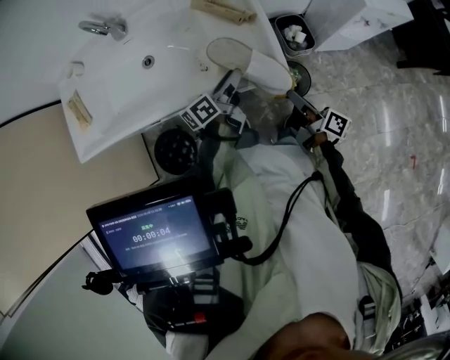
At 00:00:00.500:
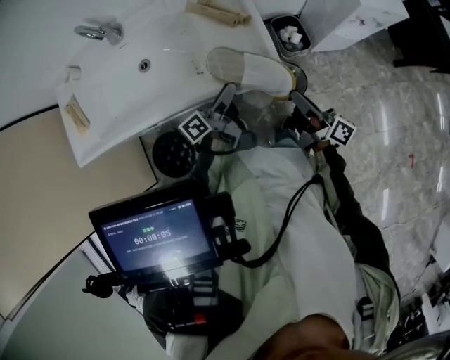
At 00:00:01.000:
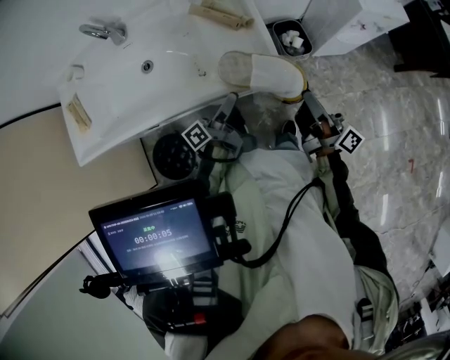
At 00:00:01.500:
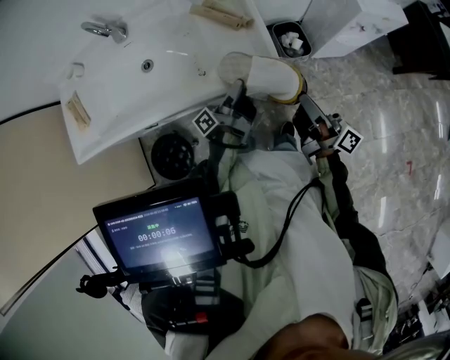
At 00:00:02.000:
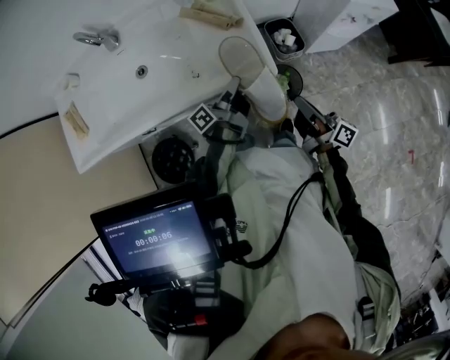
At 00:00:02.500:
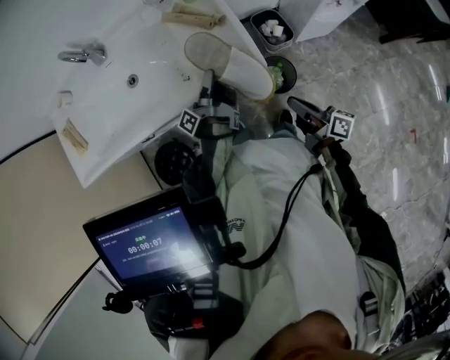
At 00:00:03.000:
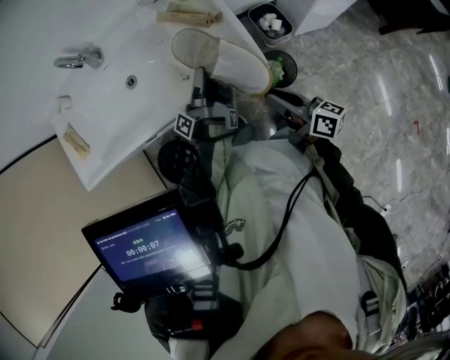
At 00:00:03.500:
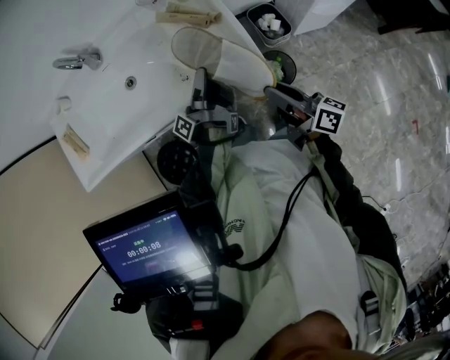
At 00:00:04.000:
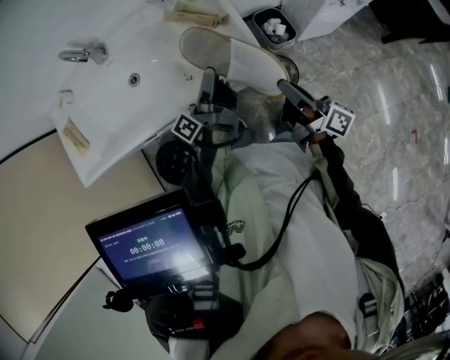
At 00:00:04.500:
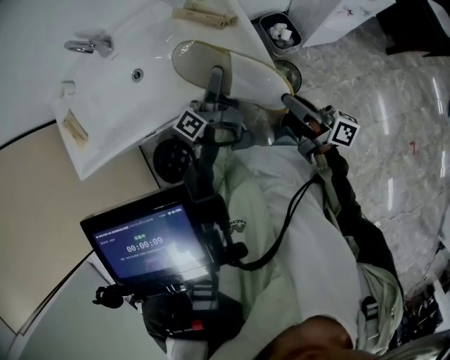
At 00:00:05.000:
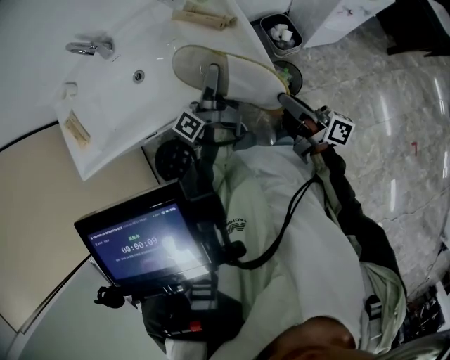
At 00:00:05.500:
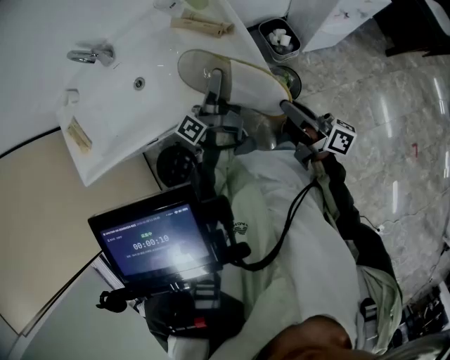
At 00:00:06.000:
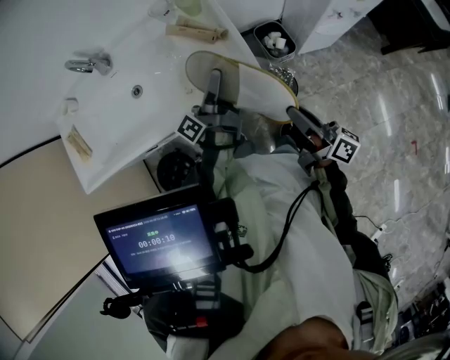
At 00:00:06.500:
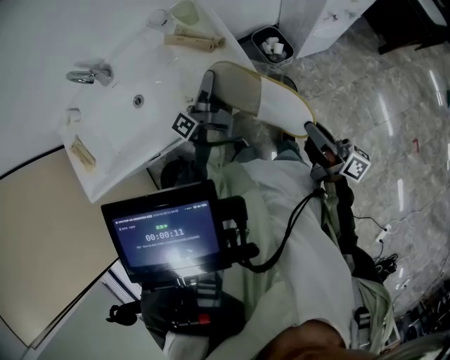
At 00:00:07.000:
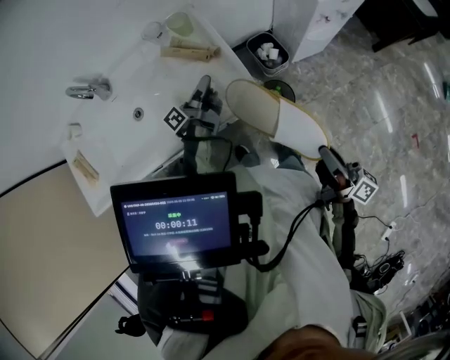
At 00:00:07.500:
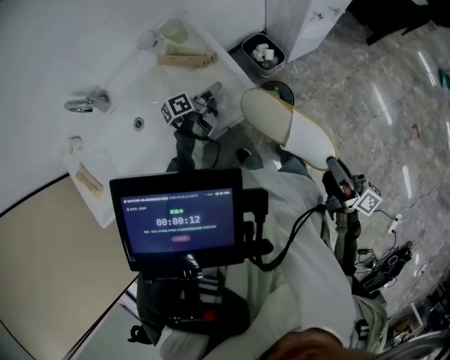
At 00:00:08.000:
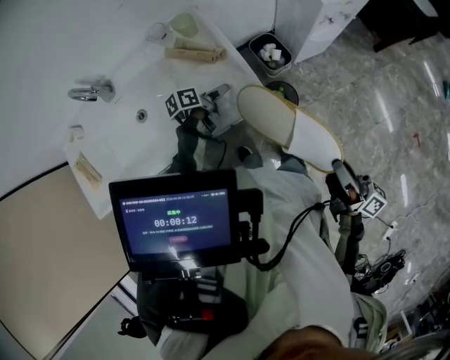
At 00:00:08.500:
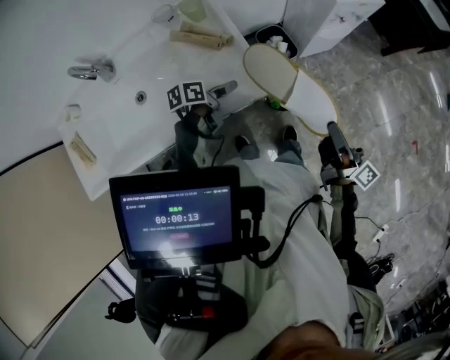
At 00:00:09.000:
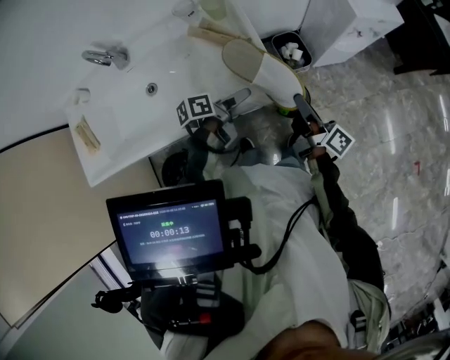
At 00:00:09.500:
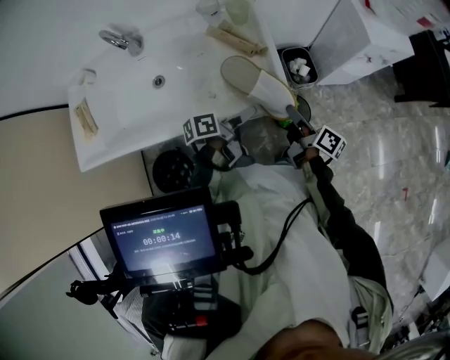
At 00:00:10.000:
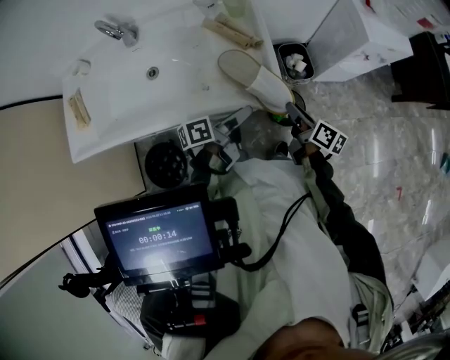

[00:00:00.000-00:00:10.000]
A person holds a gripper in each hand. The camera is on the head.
00:00:00.000 to 00:00:02.000: The right gripper goes about 5 cm upward.
00:00:02.000 to 00:00:04.000: The right gripper changes place by approximately 5 cm.
00:00:06.000 to 00:00:08.000: The right gripper changes place by about 15 cm.
00:00:08.000 to 00:00:10.000: The right gripper shifts by about 25 cm, and tips its fingers downward by approximately 30 degrees.

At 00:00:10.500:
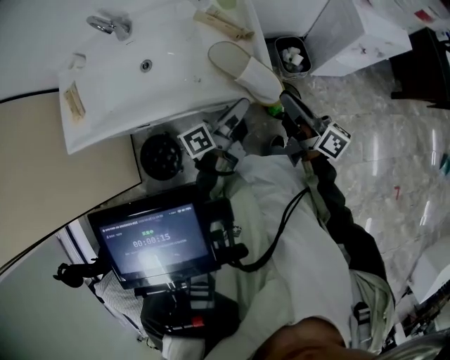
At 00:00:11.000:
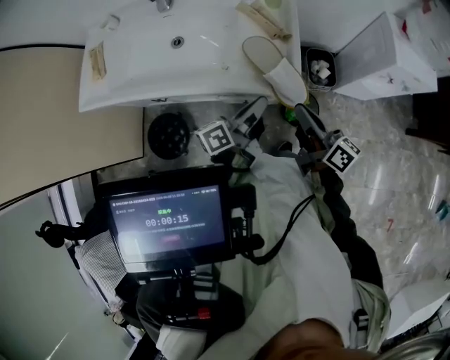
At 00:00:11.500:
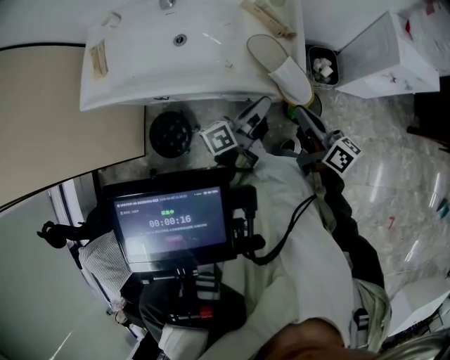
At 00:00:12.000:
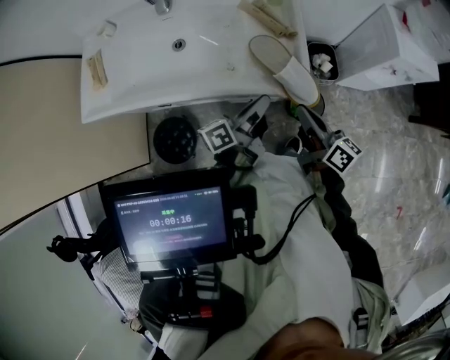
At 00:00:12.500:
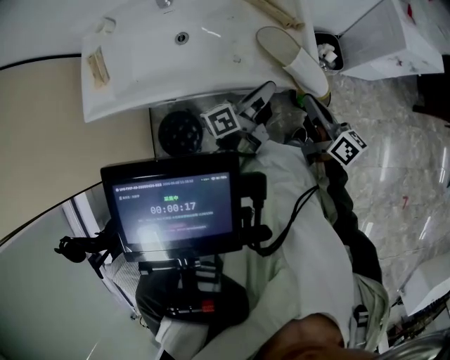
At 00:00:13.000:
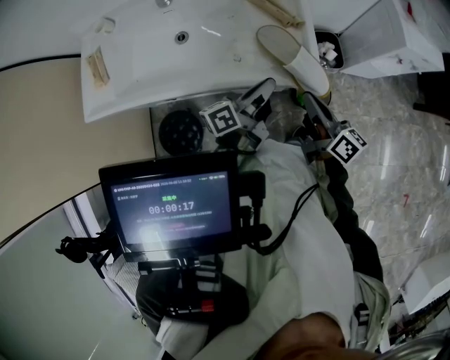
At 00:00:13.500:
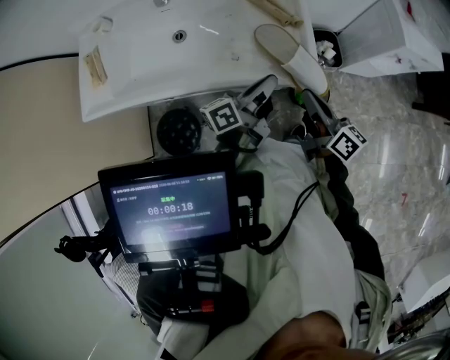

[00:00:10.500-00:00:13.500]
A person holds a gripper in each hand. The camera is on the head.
00:00:10.500 to 00:00:12.000: The right gripper ends up approximately 5 cm from where it was, and closes.

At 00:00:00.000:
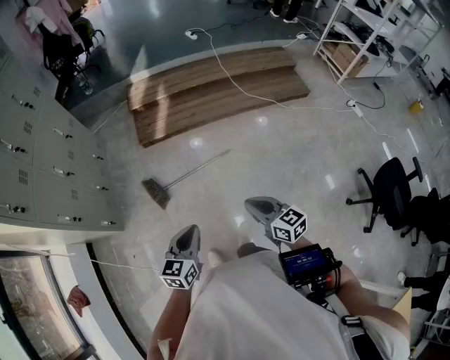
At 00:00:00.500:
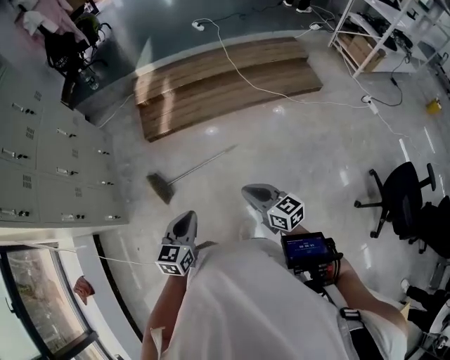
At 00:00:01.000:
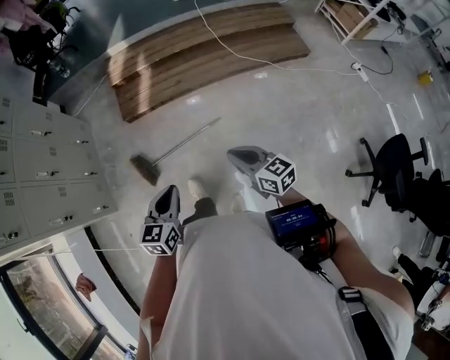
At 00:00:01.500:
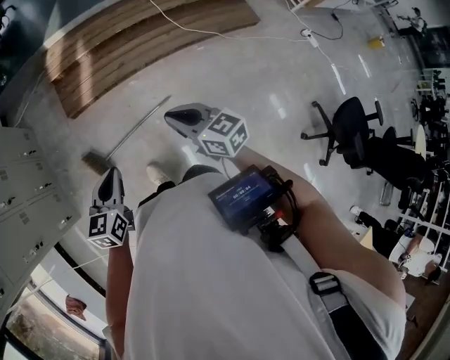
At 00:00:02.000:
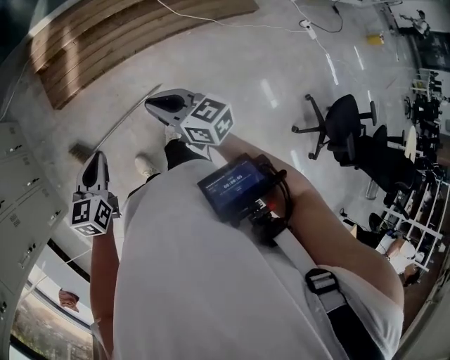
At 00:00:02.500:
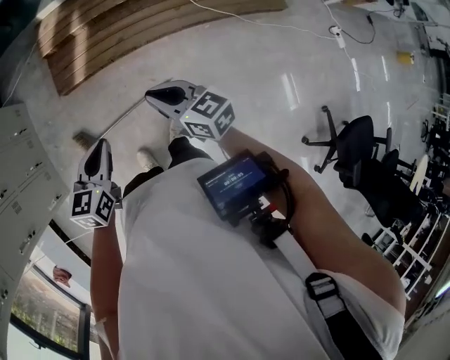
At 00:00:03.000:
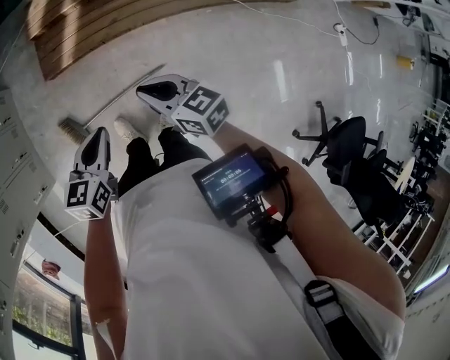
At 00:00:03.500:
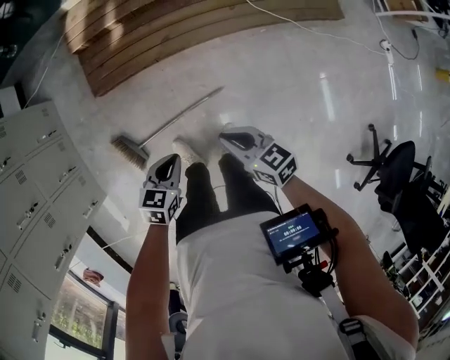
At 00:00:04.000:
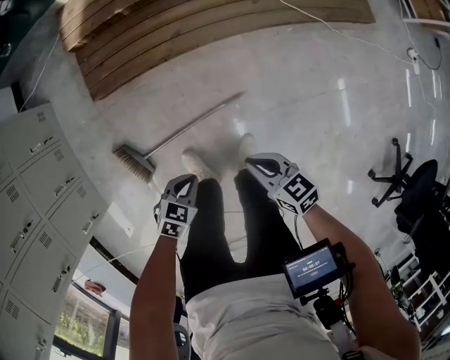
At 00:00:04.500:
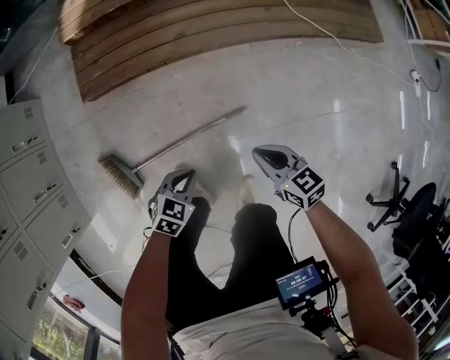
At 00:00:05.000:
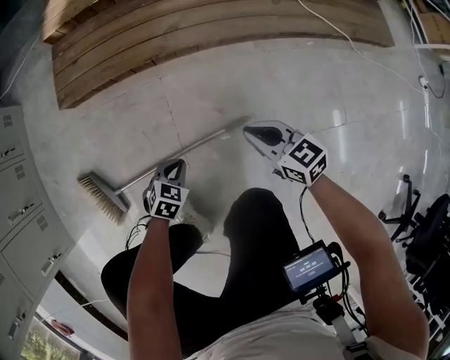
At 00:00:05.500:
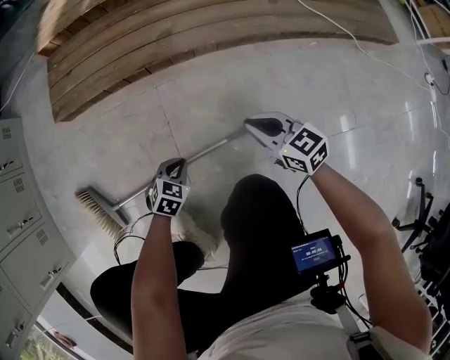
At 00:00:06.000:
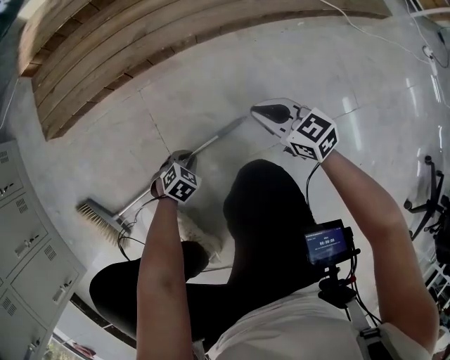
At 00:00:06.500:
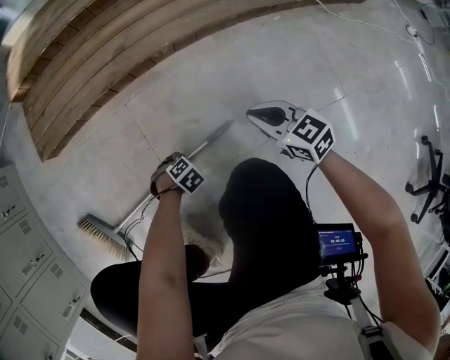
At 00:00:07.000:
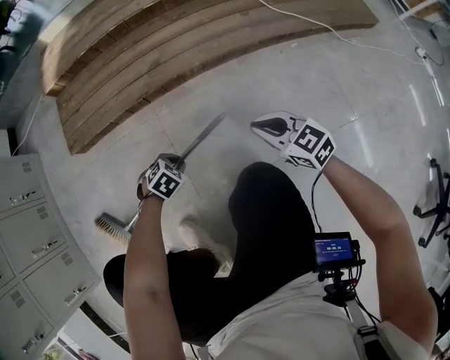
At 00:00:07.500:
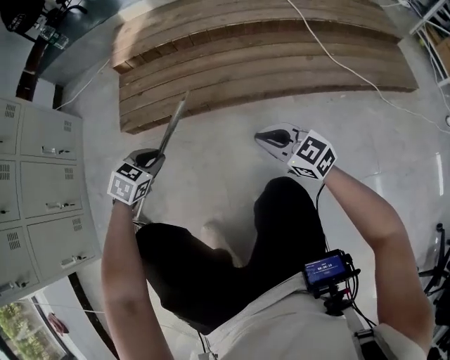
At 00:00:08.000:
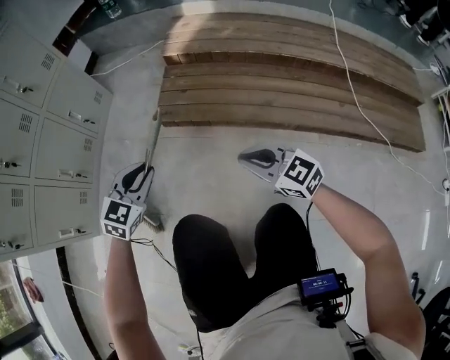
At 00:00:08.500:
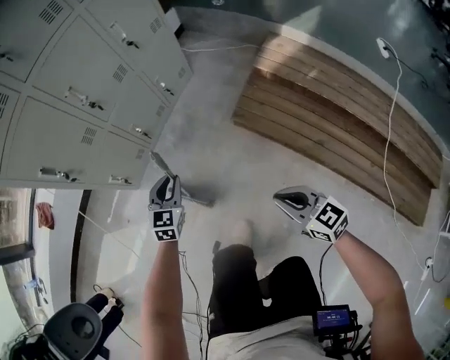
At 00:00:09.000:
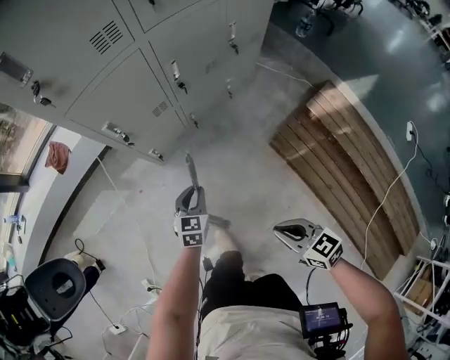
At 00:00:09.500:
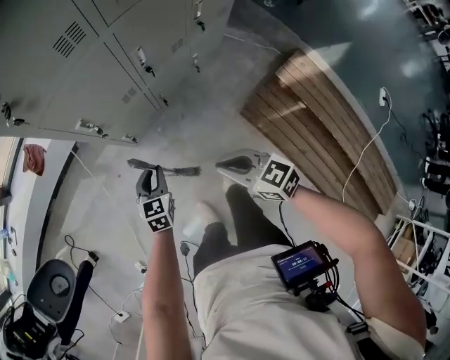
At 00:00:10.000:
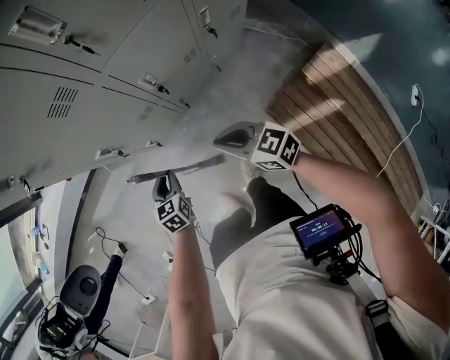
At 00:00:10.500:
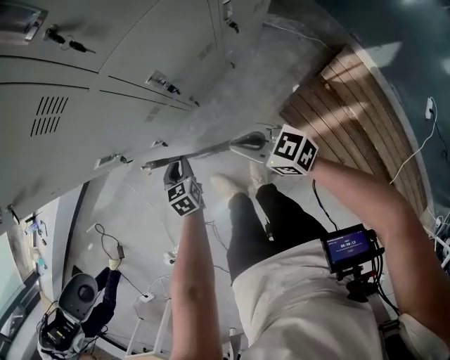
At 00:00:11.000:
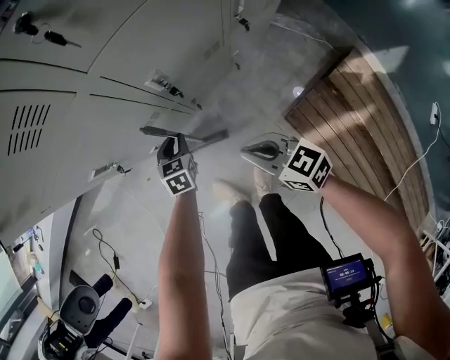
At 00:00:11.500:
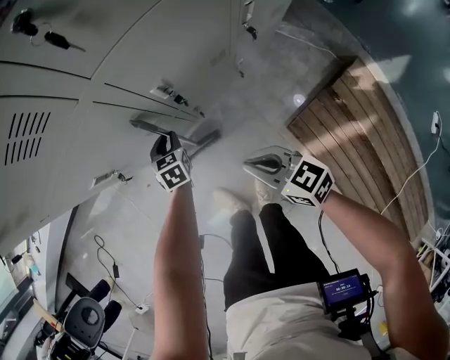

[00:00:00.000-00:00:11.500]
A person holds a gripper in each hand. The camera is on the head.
00:00:00.000 to 00:00:02.000: The grippers both shift forward by roughly 35 cm.
00:00:02.000 to 00:00:04.000: Both grippers travel together downward, roughly 35 cm. The right gripper turns by some 20 degrees. Meanwhile the left gripper swivels approximately 40 degrees.
00:00:04.000 to 00:00:06.000: The left gripper travels downward by some 50 cm, and swivels some 30 degrees. Meanwhile the right gripper is displaced downward and forward by some 35 cm.
00:00:06.000 to 00:00:07.500: The left gripper shifts roughly 25 cm upward, and turns by roughly 30 degrees. Meanwhile the right gripper shifts by about 20 cm, and changes its angle by about 20 degrees.
00:00:07.500 to 00:00:09.500: Both grippers are carried roughly 50 cm. The left gripper swivels some 90 degrees. The right gripper changes its angle by about 60 degrees.
00:00:09.500 to 00:00:11.500: The left gripper goes approximately 30 cm forward, downward and to the right, while the right gripper goes about 20 cm forward, to the right and downward.

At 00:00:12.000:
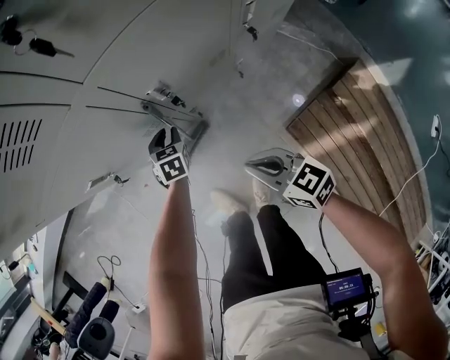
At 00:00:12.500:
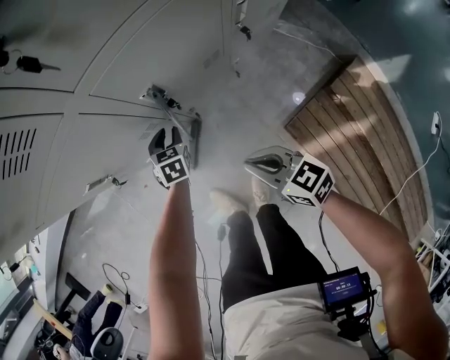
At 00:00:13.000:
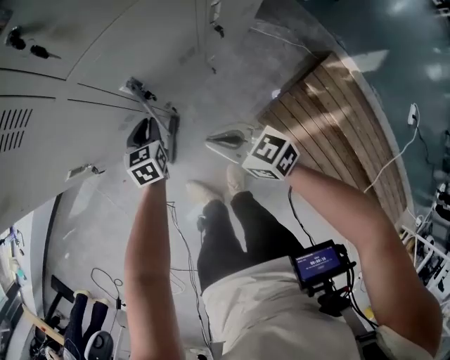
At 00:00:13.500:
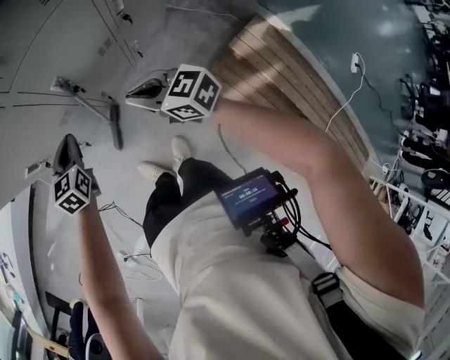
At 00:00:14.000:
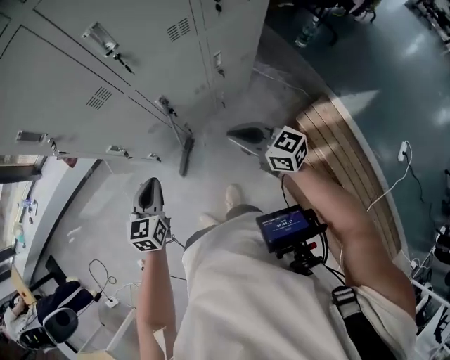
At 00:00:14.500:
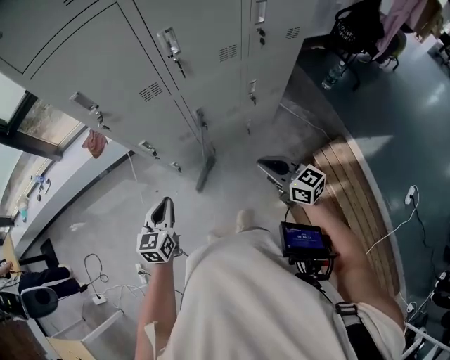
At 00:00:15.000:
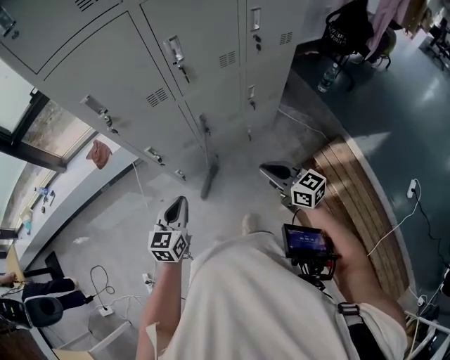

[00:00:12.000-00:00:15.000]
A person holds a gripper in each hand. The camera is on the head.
00:00:12.000 to 00:00:13.500: The right gripper moves upward and to the right, approximately 15 cm. The left gripper is displaced upward and backward by about 25 cm.
00:00:13.500 to 00:00:15.000: The left gripper is displaced backward, upward and to the left by about 25 cm; the right gripper travels backward and upward by about 15 cm.
